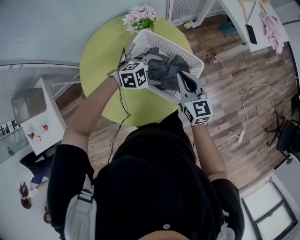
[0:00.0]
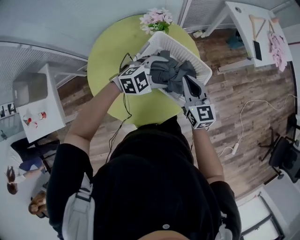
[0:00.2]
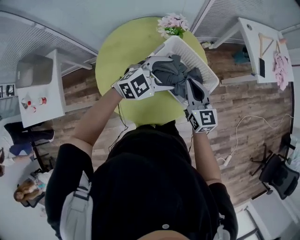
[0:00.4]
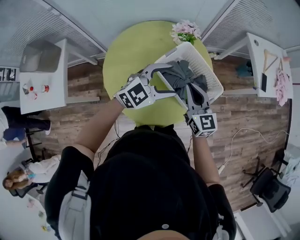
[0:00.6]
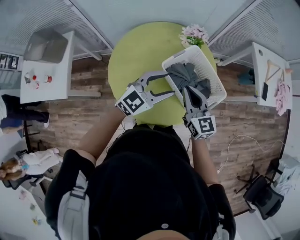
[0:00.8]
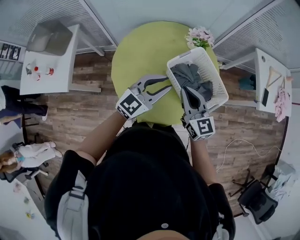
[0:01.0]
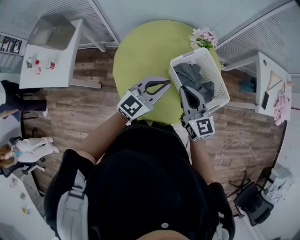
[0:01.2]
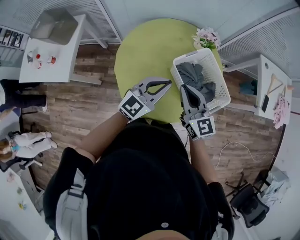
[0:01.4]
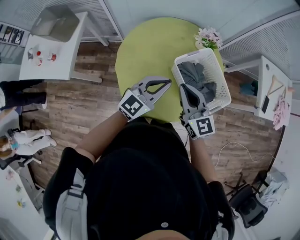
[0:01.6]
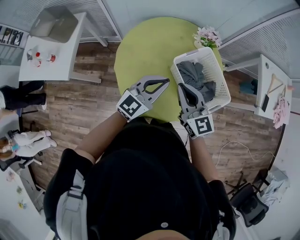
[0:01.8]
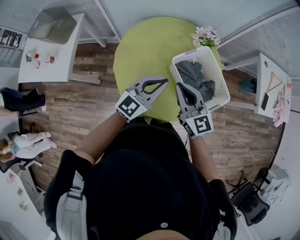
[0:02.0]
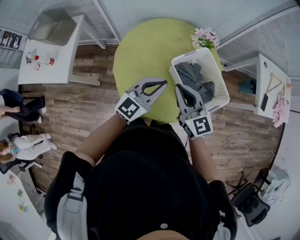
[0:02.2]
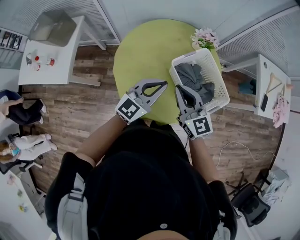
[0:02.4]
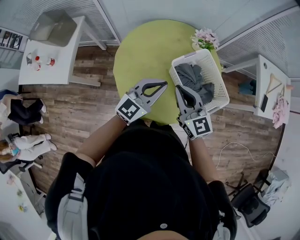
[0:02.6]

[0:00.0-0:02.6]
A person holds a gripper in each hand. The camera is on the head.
0:00.0 to 0:01.2: The right gripper shifts by roughly 25 cm, and changes its angle by roughly 30 degrees. Meanwhile the left gripper ends up about 25 cm from where it was, angles its fingers upward, by roughly 40 degrees, and closes its fingers.
0:01.2 to 0:02.6: The grippers stay close to where they were, moving slightly.

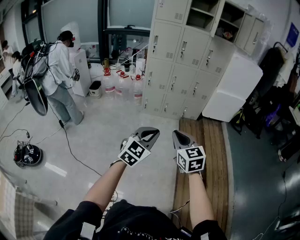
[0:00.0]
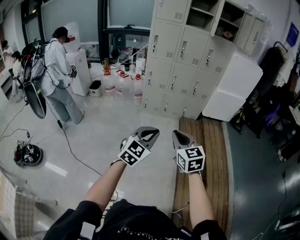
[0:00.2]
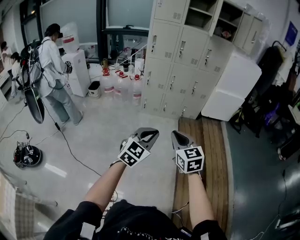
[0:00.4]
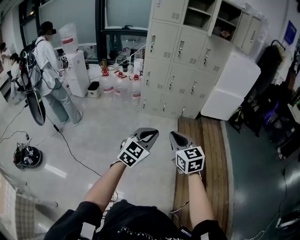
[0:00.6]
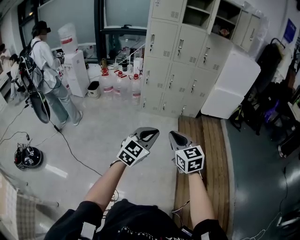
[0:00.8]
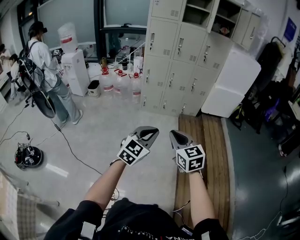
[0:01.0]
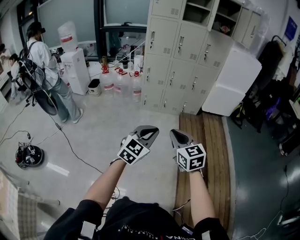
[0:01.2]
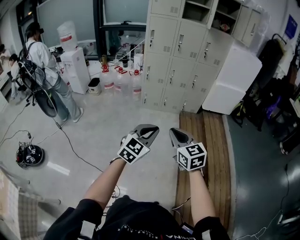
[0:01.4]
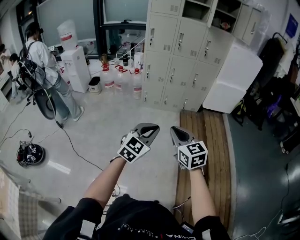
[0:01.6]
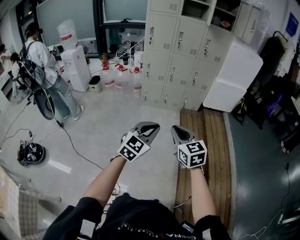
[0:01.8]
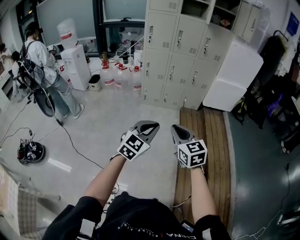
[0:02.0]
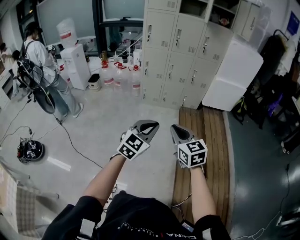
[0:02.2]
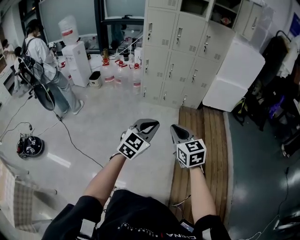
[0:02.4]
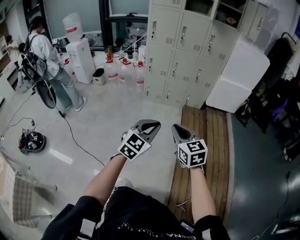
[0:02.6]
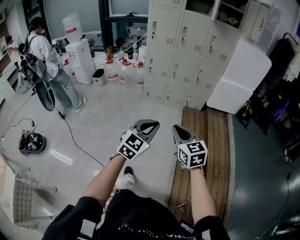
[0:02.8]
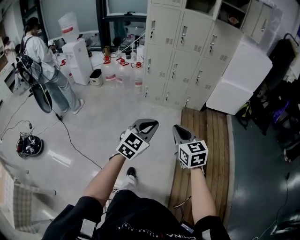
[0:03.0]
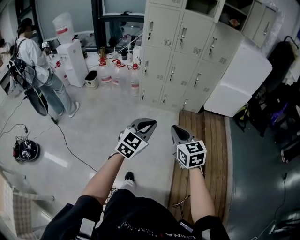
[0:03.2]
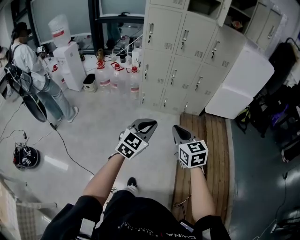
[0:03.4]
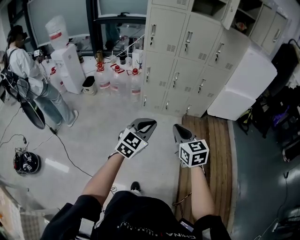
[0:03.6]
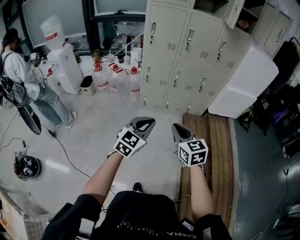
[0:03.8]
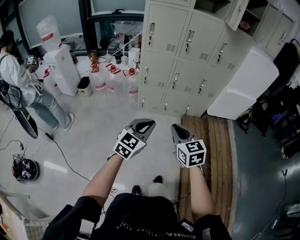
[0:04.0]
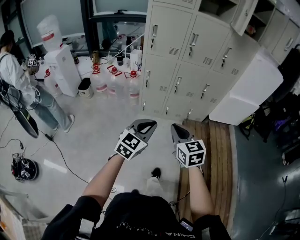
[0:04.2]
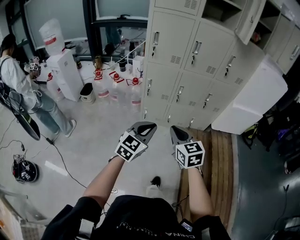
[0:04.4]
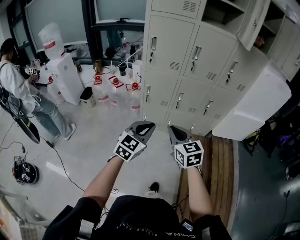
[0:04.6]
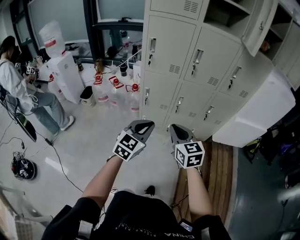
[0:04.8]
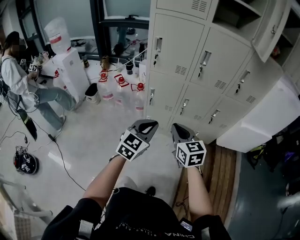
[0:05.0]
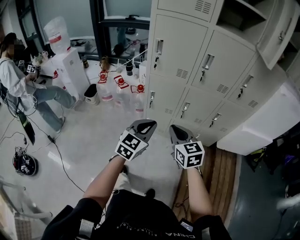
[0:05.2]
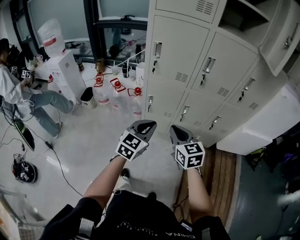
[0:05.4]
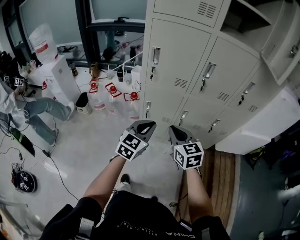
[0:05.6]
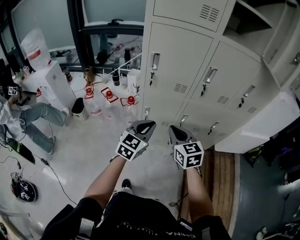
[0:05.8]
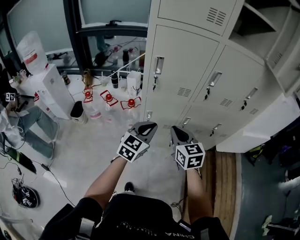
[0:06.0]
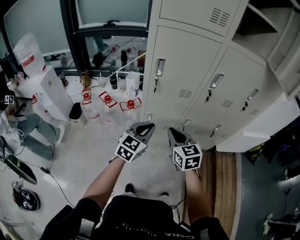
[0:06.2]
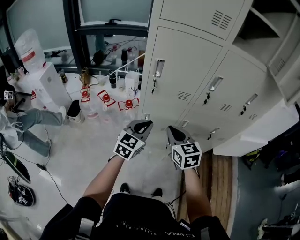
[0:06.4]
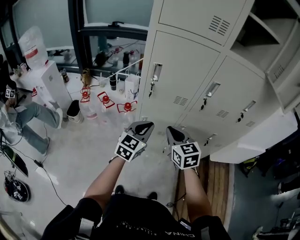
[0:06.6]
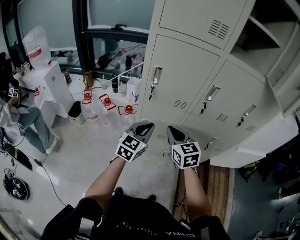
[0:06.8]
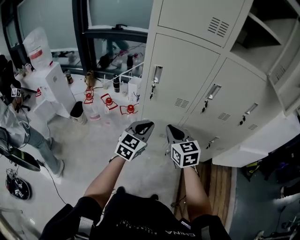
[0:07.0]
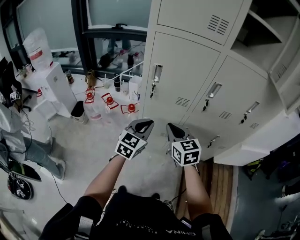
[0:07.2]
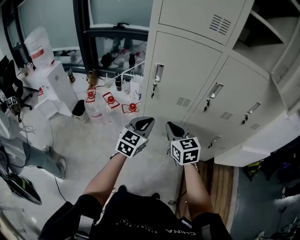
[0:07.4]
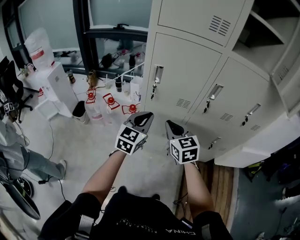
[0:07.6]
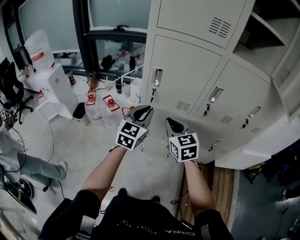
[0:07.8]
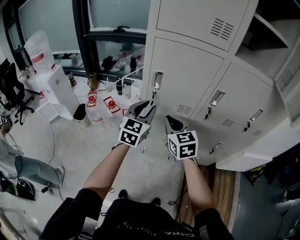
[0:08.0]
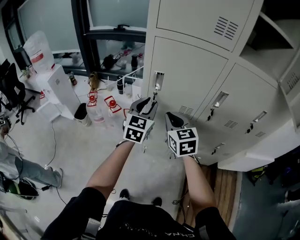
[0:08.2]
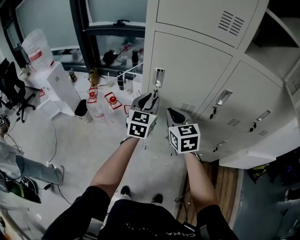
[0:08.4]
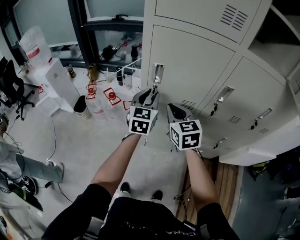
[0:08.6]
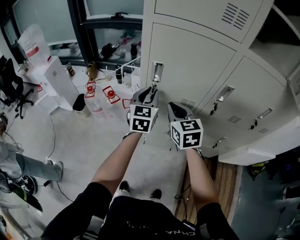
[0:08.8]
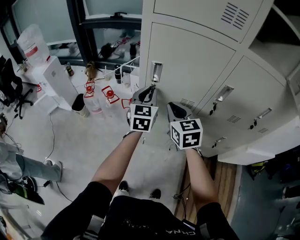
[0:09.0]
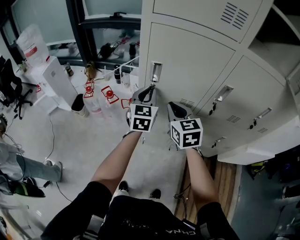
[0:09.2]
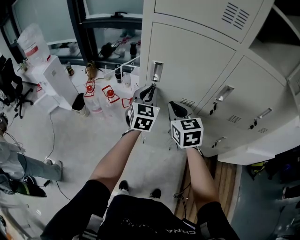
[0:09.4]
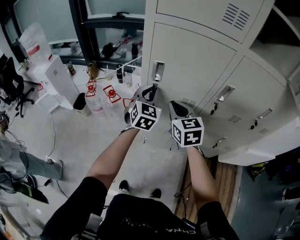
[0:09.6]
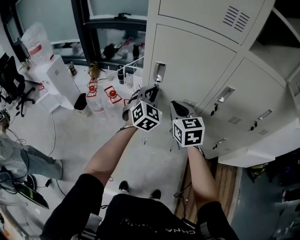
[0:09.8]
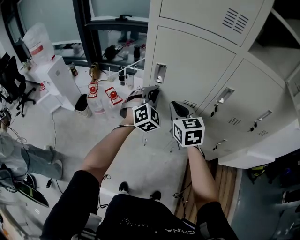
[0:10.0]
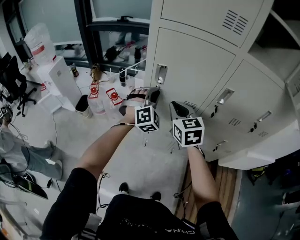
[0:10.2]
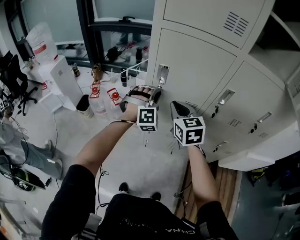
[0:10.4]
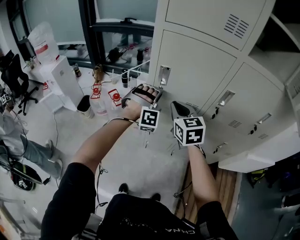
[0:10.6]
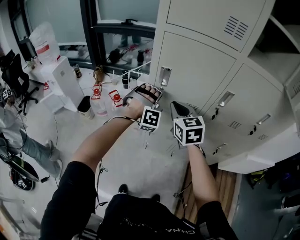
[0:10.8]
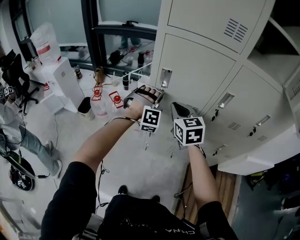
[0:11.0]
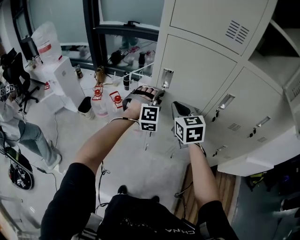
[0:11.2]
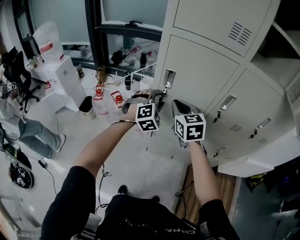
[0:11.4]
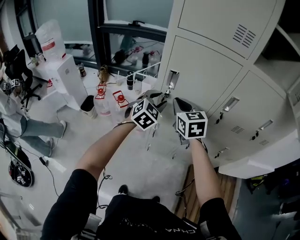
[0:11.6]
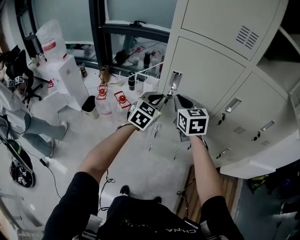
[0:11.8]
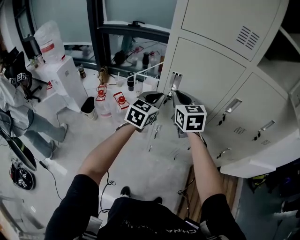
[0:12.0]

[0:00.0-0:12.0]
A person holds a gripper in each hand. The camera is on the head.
0:00.0 to 0:01.6: The grippers stay close to where they were, moving slightly.
0:01.6 to 0:03.0: The grippers both shift forward and to the right by about 10 cm.
0:03.0 to 0:04.4: The two grippers travel together, forward and to the left, approximately 40 cm.
0:04.4 to 0:06.0: The two grippers go about 35 cm forward.
0:06.0 to 0:07.6: The right gripper heads forward, covering some 5 cm. Meanwhile the left gripper goes about 10 cm forward and upward.
0:07.6 to 0:09.0: The grippers both shift forward by approximately 15 cm.
0:09.0 to 0:10.4: The left gripper rotates around the line of its fingers by about 80 degrees, clockwise from behind.
0:10.4 to 0:12.0: The grippers both shift to the left by roughly 5 cm. The left gripper rolls counterclockwise, seen from behind, by approximately 70 degrees, and opens and closes again.

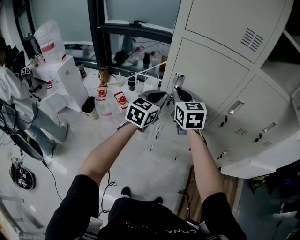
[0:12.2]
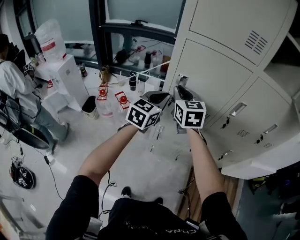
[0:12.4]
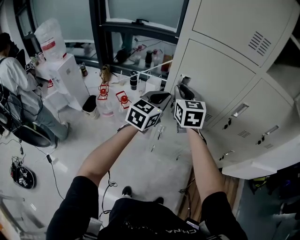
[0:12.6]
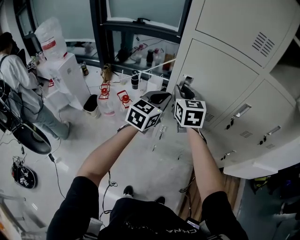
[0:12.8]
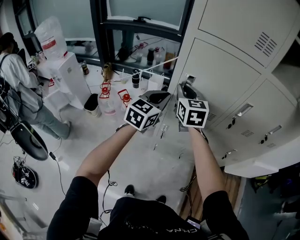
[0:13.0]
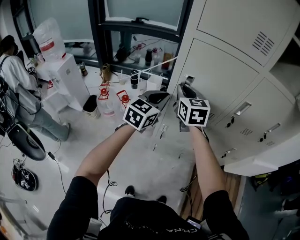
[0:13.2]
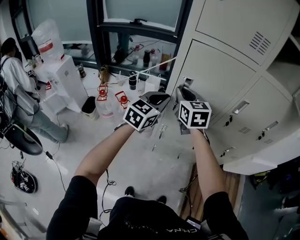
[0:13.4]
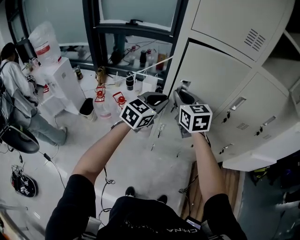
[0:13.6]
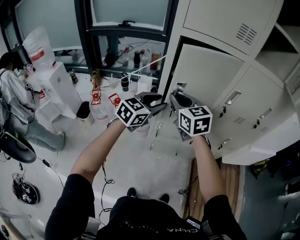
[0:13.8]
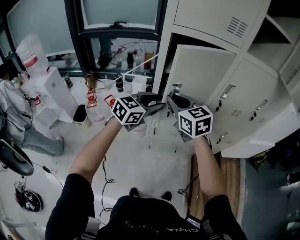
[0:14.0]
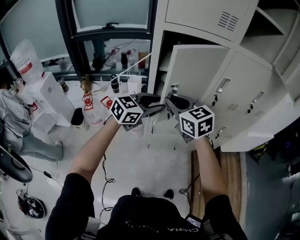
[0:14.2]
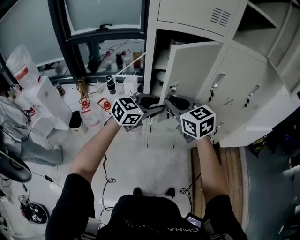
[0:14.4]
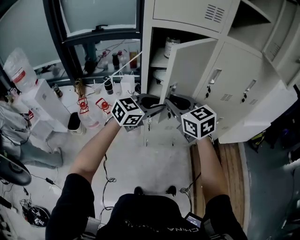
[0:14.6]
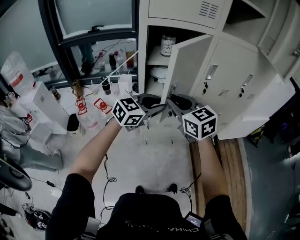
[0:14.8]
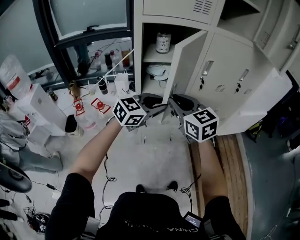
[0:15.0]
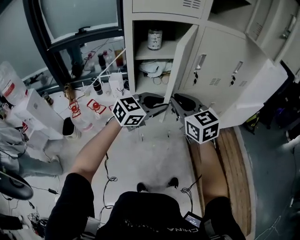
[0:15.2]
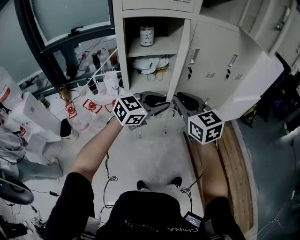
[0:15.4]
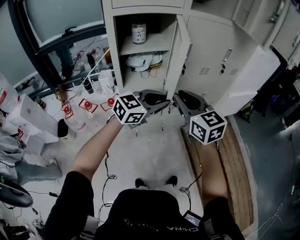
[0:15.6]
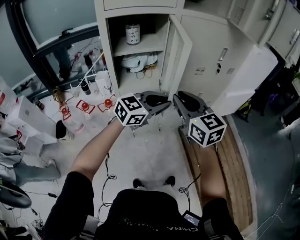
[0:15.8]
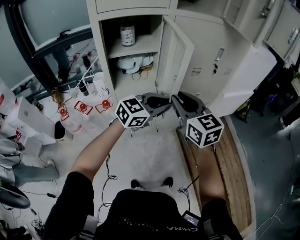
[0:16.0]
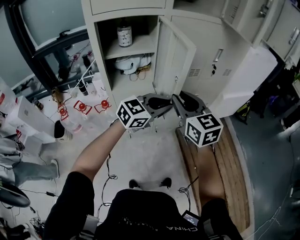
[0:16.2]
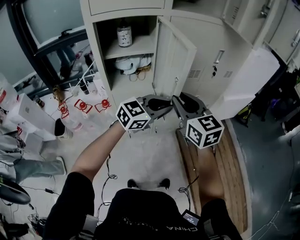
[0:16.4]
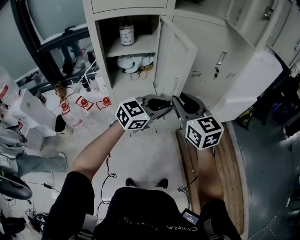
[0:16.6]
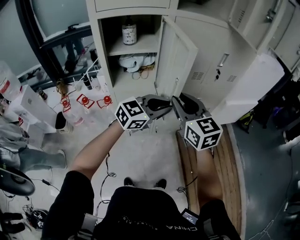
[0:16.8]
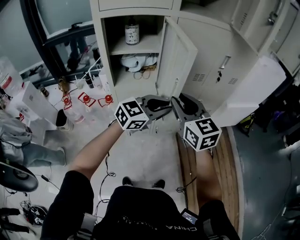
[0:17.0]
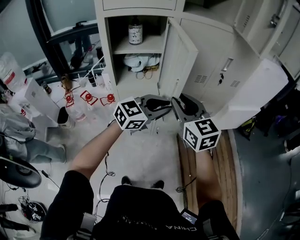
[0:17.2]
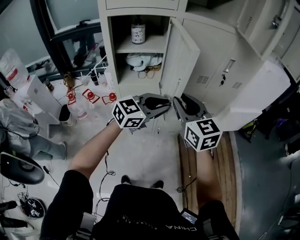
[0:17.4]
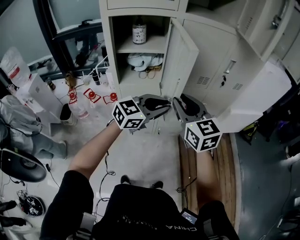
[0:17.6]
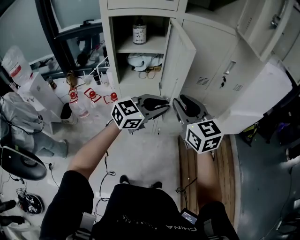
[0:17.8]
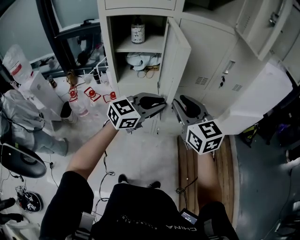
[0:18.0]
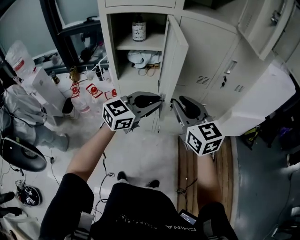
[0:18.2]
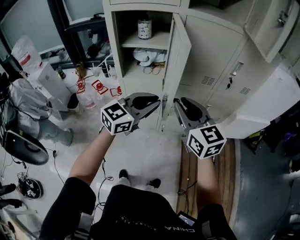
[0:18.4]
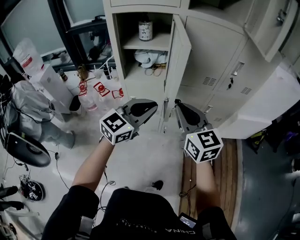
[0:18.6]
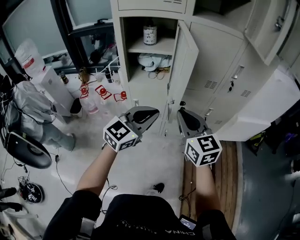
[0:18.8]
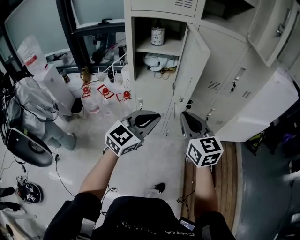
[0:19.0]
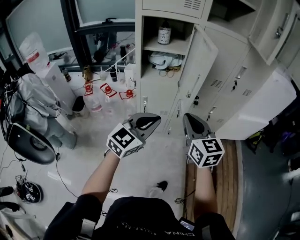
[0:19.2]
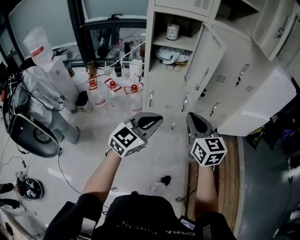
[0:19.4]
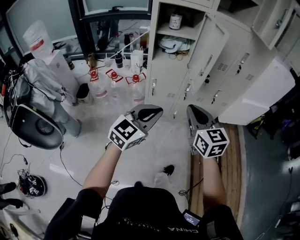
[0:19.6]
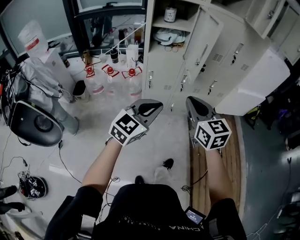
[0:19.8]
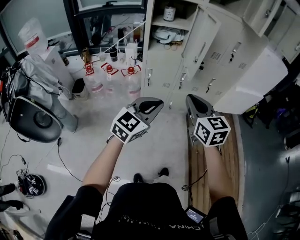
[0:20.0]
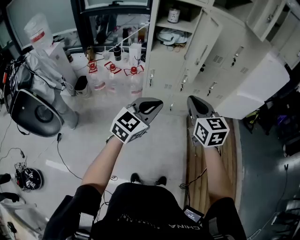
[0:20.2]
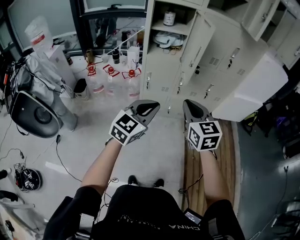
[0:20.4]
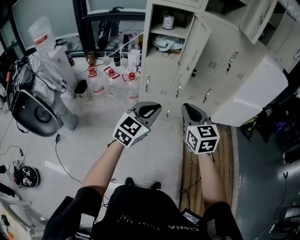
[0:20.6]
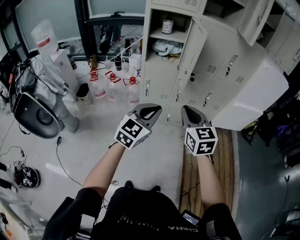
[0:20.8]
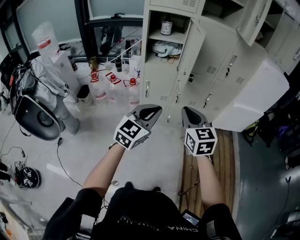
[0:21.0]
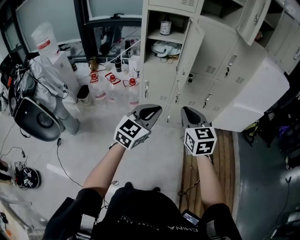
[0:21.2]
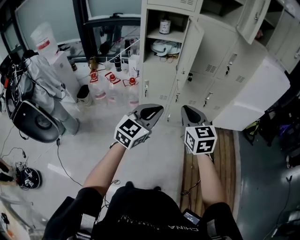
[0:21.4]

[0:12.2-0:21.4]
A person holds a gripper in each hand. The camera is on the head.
0:12.2 to 0:13.8: The left gripper moves approximately 5 cm, rotates some 20 degrees, and opens. The right gripper goes approximately 5 cm backward.
0:13.8 to 0:15.2: The grippers both shift to the right and backward by roughly 15 cm. The left gripper turns by roughly 30 degrees.
0:15.2 to 0:16.8: Both grippers move to the right, approximately 15 cm.
0:16.8 to 0:18.4: The left gripper changes its angle by some 20 degrees.
0:18.4 to 0:19.8: Both grippers travel together backward and to the left, roughly 30 cm.
0:19.8 to 0:21.4: The grippers both shift to the right by roughly 10 cm.
